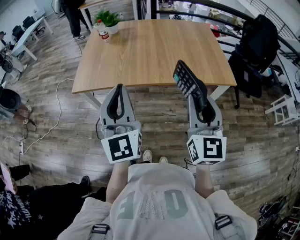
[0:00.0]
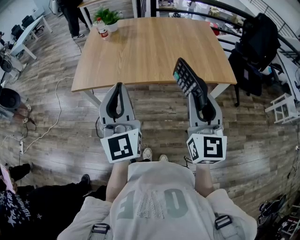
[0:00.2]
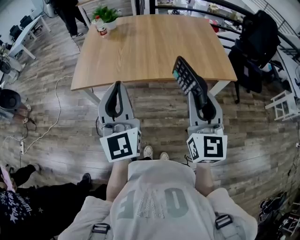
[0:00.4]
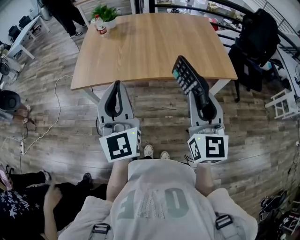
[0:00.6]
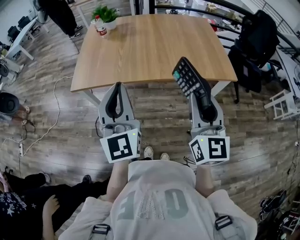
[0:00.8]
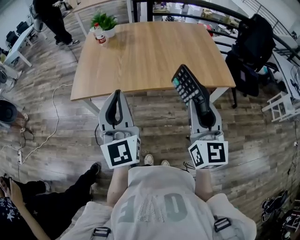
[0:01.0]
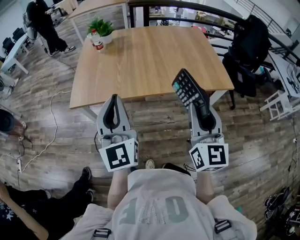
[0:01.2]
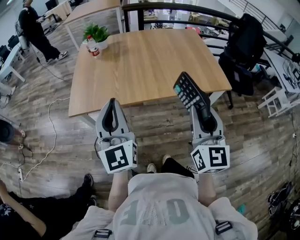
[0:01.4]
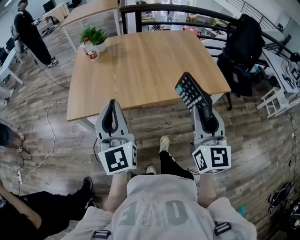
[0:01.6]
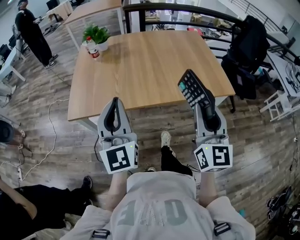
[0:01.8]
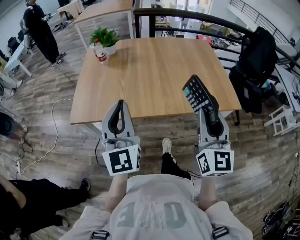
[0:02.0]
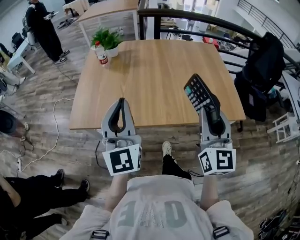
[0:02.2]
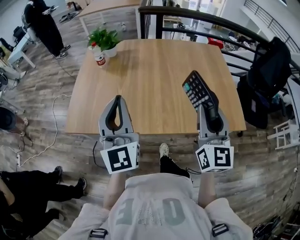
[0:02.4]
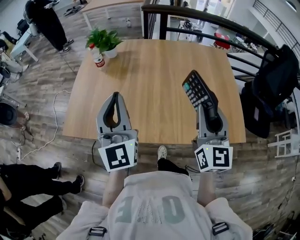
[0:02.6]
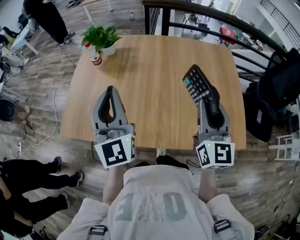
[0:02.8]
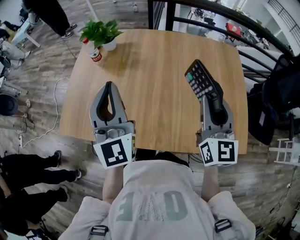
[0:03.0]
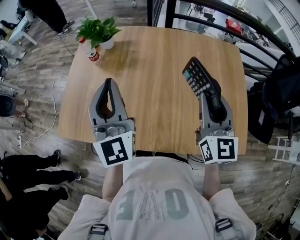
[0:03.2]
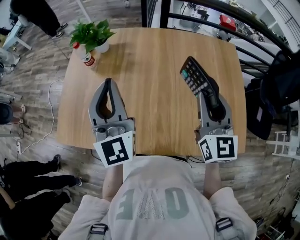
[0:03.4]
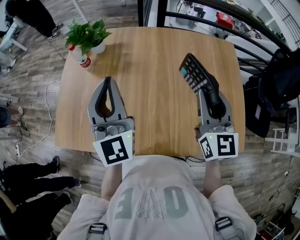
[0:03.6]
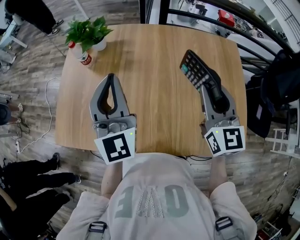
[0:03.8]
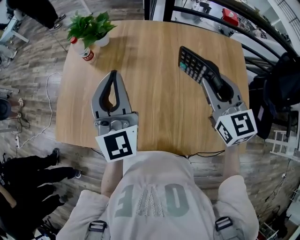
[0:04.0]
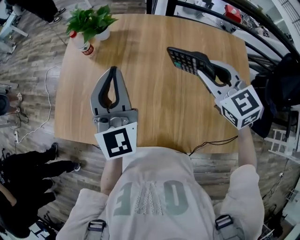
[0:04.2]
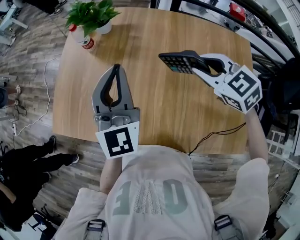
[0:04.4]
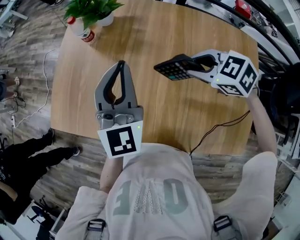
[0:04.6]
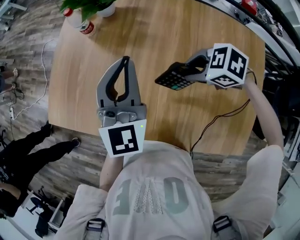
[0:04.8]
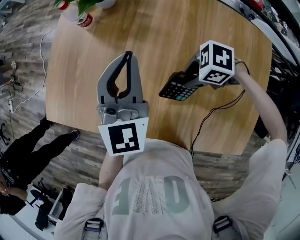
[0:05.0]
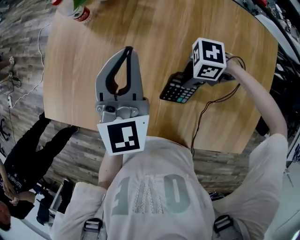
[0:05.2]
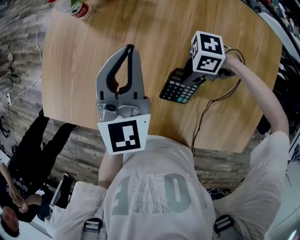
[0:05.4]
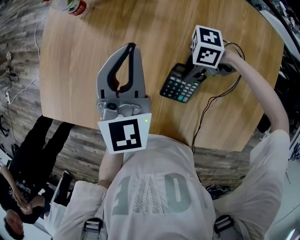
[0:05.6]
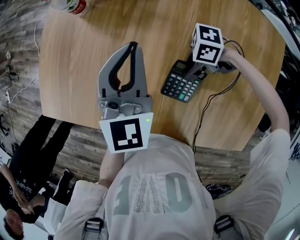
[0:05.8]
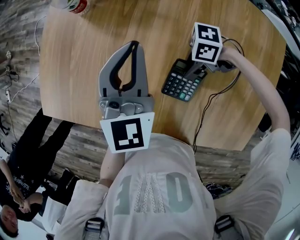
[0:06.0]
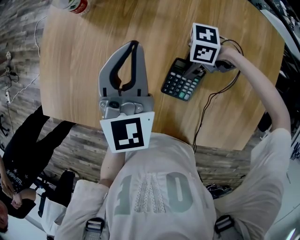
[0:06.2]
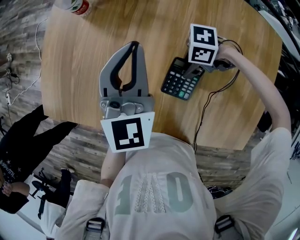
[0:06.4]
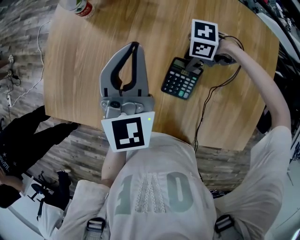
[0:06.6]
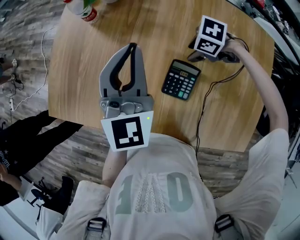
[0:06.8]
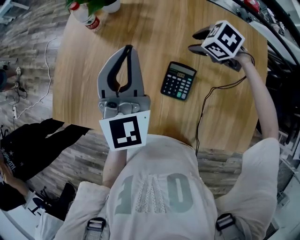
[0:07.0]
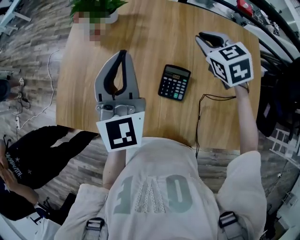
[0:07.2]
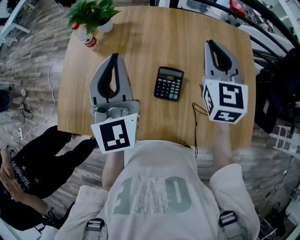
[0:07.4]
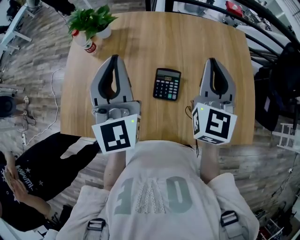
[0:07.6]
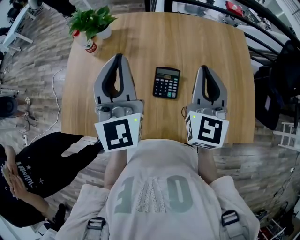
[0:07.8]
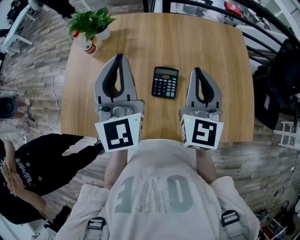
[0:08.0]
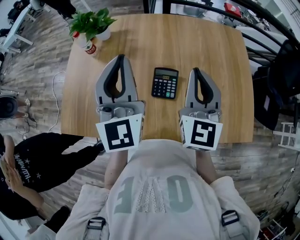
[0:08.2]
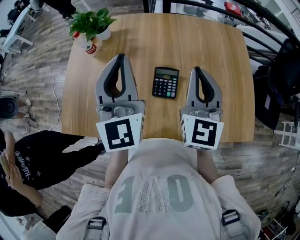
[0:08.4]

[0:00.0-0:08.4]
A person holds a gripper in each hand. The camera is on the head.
0:00.0 to 0:01.4: The left gripper heads forward and to the left, covering roughly 10 cm.
0:01.4 to 0:02.8: Both grippers travel together forward, about 35 cm.
0:02.8 to 0:04.2: Both grippers move forward, roughly 15 cm. The right gripper angles its fingers downward, by about 30 degrees.
0:04.2 to 0:05.6: The right gripper shifts approximately 25 cm downward, and turns by some 100 degrees. Meanwhile the left gripper is displaced downward by approximately 15 cm.
0:05.6 to 0:07.0: The right gripper changes place by roughly 15 cm, tips its fingers downward by some 30 degrees, and opens its fingers. The left gripper is displaced upward by roughly 10 cm.
0:07.0 to 0:08.4: The right gripper goes about 20 cm upward, tilts its fingers about 70 degrees upward, and closes; the left gripper changes place by approximately 10 cm.

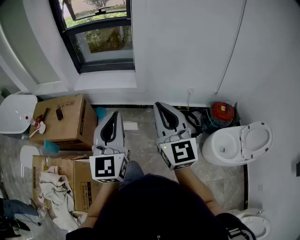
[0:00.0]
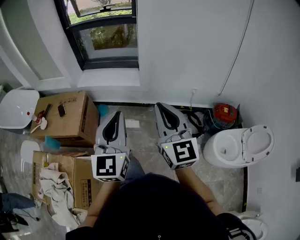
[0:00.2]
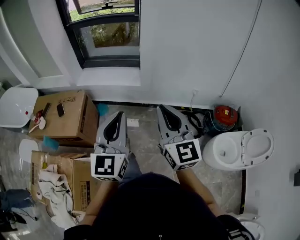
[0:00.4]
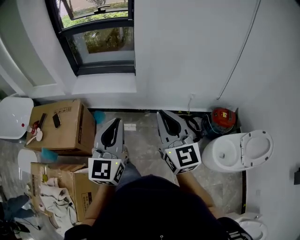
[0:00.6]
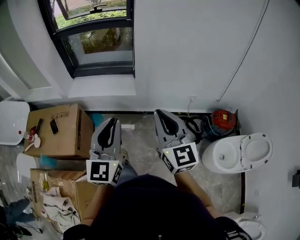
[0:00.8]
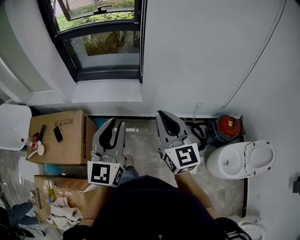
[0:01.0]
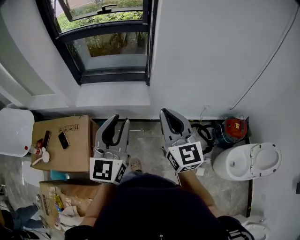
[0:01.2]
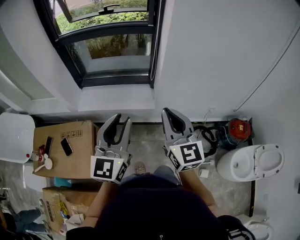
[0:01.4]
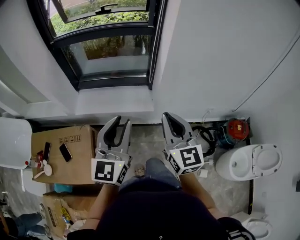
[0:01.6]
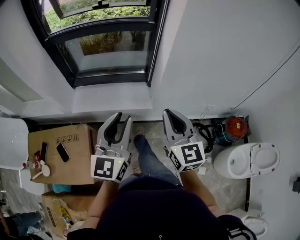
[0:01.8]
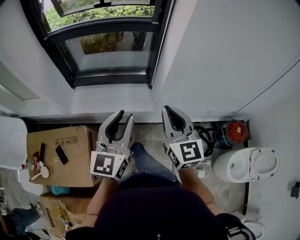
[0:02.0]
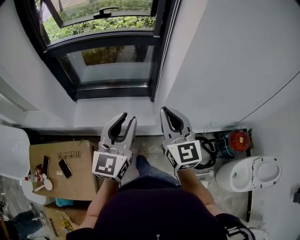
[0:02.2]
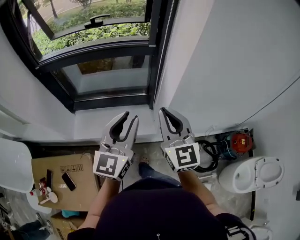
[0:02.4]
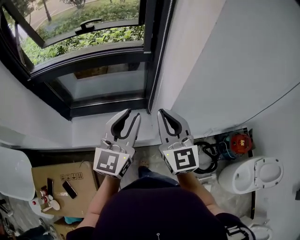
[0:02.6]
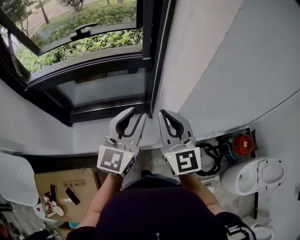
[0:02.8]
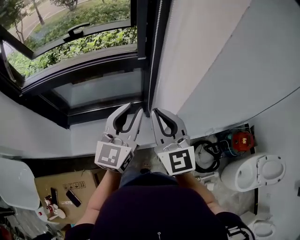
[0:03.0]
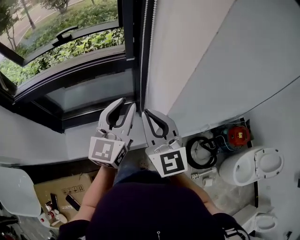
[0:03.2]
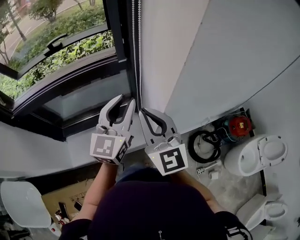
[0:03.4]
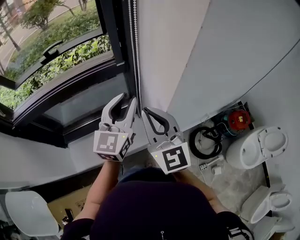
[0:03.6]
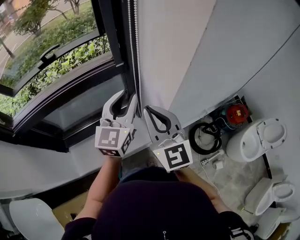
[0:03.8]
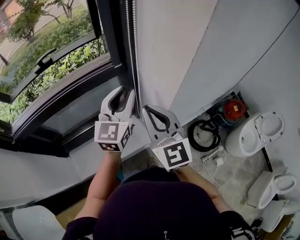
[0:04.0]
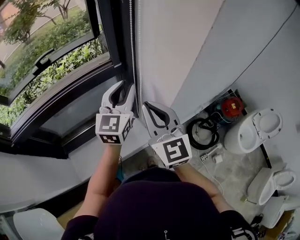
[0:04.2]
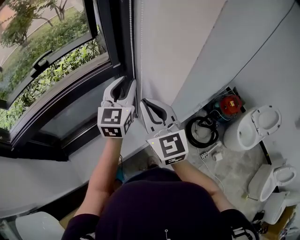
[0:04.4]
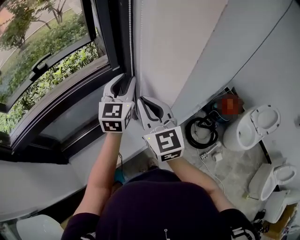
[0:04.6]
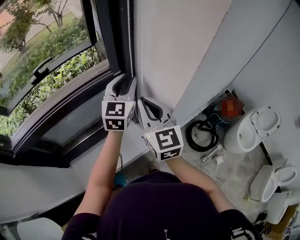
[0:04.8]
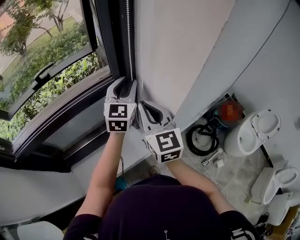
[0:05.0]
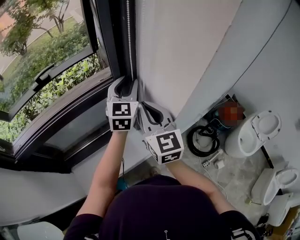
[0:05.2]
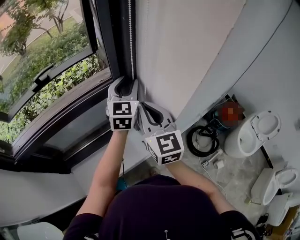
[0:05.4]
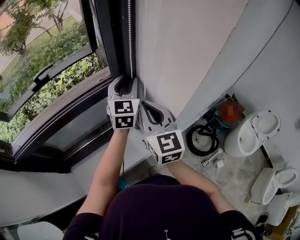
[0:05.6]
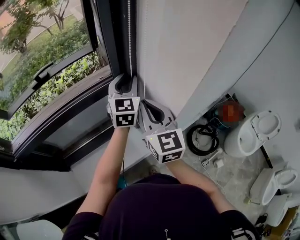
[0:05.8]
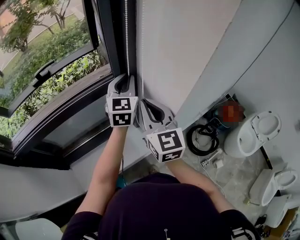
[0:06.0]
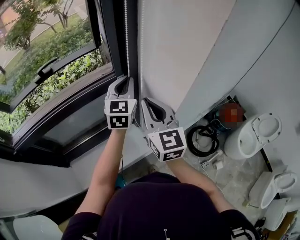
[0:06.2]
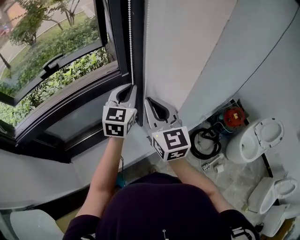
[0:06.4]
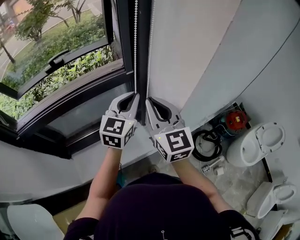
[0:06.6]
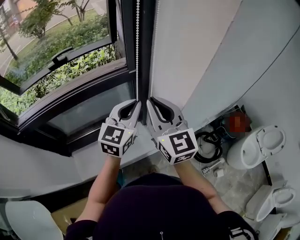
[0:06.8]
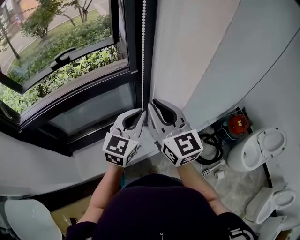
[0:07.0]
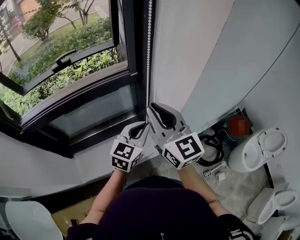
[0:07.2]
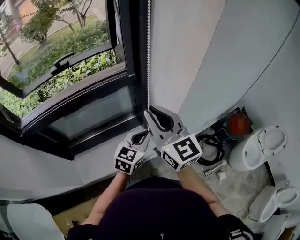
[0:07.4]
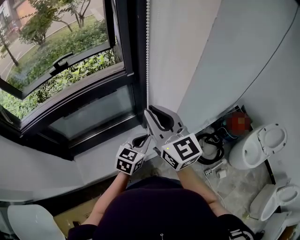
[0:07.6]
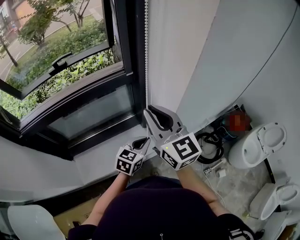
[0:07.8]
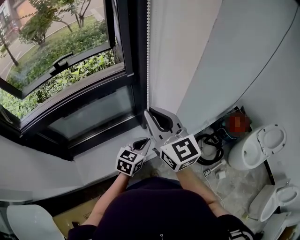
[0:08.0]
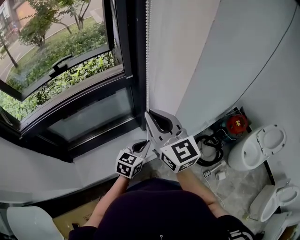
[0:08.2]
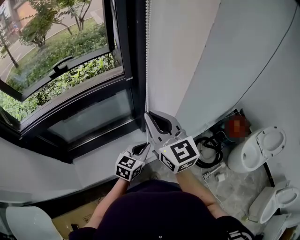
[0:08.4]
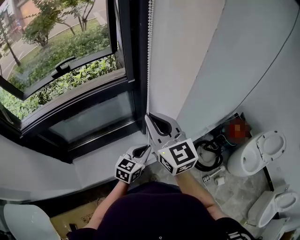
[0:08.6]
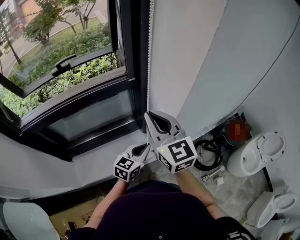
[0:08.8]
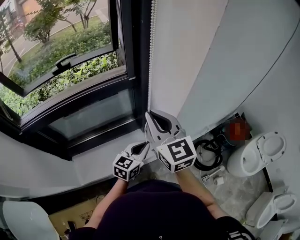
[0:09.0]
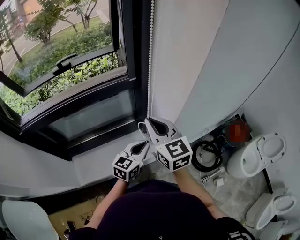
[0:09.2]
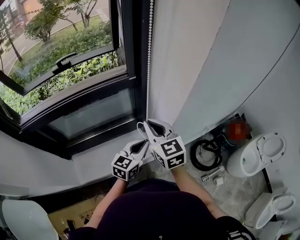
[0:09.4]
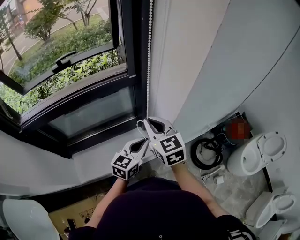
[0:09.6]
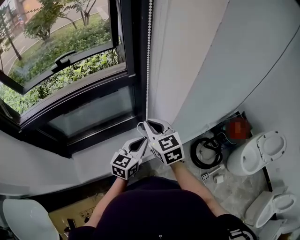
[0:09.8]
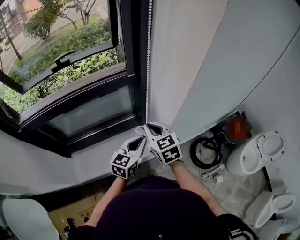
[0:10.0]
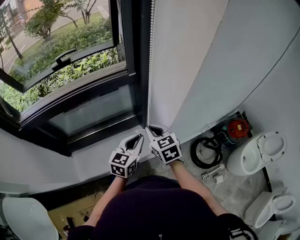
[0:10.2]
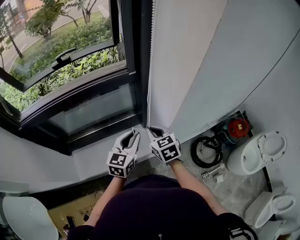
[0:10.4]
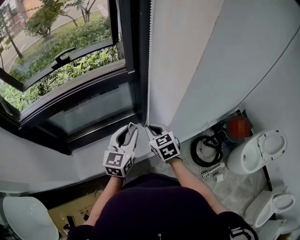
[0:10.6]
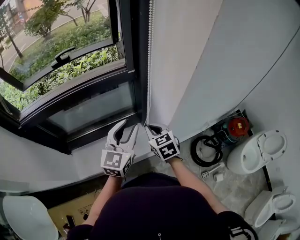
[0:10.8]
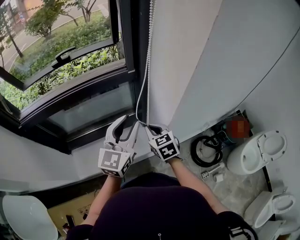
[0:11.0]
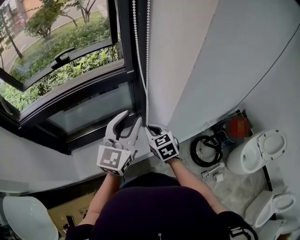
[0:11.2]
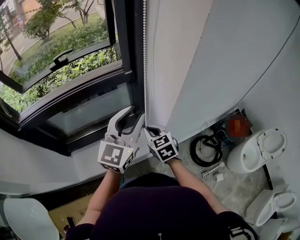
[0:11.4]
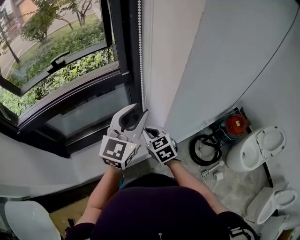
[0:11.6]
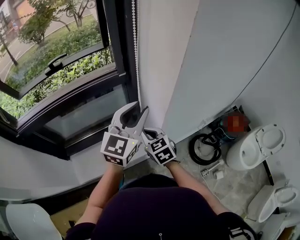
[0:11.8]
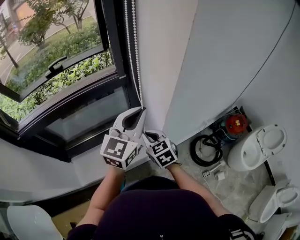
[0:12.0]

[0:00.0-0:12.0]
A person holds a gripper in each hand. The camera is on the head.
0:00.0 to 0:01.6: Both grippers are carried forward and to the left, about 40 cm. The left gripper opens.
0:01.6 to 0:03.0: The grippers both shift forward by some 35 cm.
0:03.0 to 0:04.4: The right gripper swivels roughly 20 degrees. Meanwhile the left gripper is displaced forward by approximately 10 cm.
0:04.4 to 0:06.0: The left gripper shifts approximately 10 cm forward.
0:06.0 to 0:07.6: The right gripper travels backward by approximately 10 cm; the left gripper goes roughly 25 cm backward and downward, and swivels some 30 degrees.
0:07.6 to 0:09.0: The grippers stay close to where they were, moving slightly.
0:09.0 to 0:10.4: The left gripper ends up about 5 cm from where it was; the right gripper goes roughly 20 cm downward, and changes its angle by about 30 degrees.
0:10.4 to 0:12.0: The left gripper goes some 20 cm upward and to the right, and changes its angle by about 20 degrees.

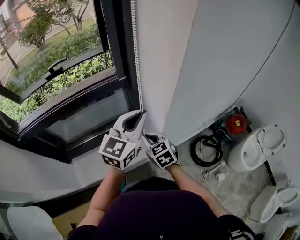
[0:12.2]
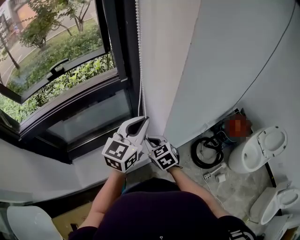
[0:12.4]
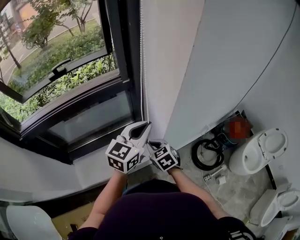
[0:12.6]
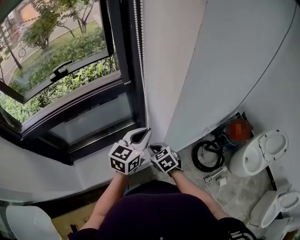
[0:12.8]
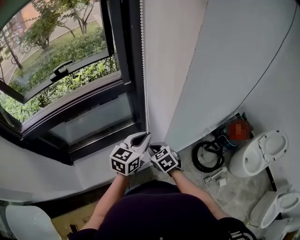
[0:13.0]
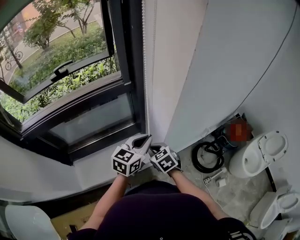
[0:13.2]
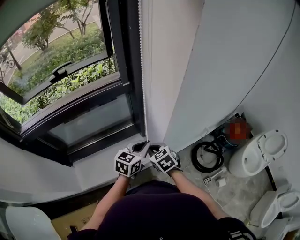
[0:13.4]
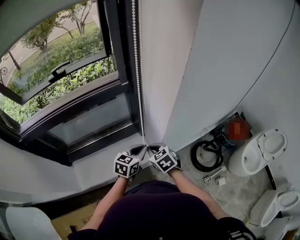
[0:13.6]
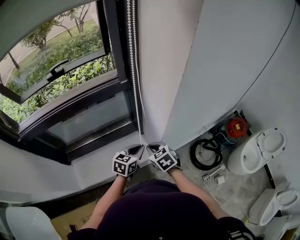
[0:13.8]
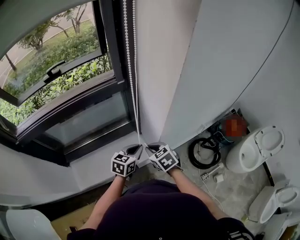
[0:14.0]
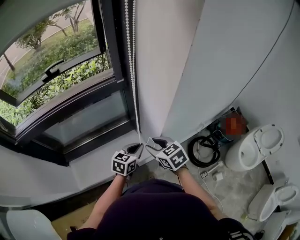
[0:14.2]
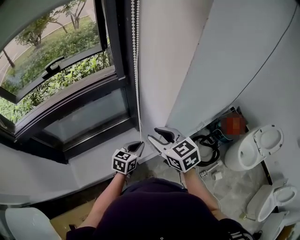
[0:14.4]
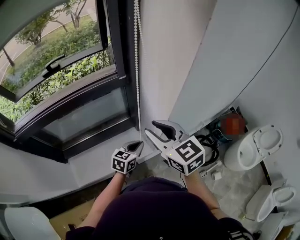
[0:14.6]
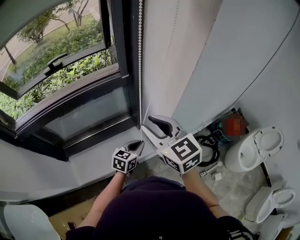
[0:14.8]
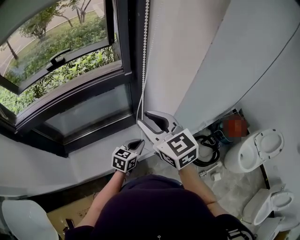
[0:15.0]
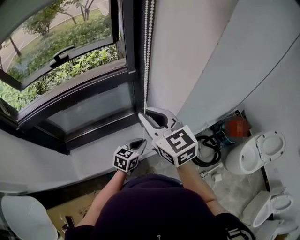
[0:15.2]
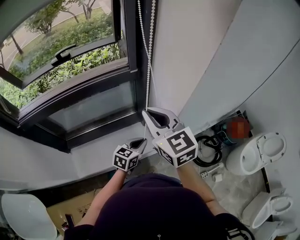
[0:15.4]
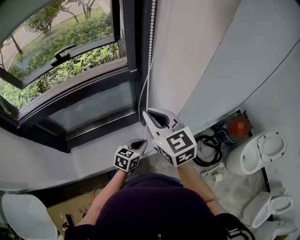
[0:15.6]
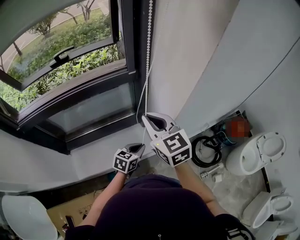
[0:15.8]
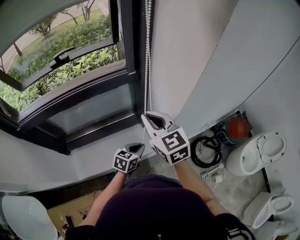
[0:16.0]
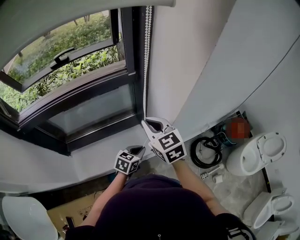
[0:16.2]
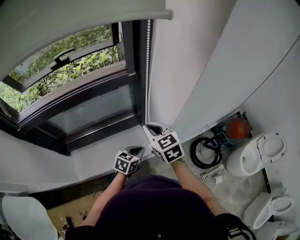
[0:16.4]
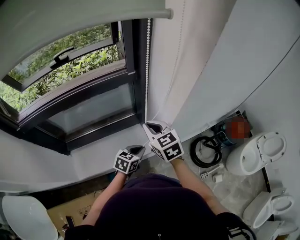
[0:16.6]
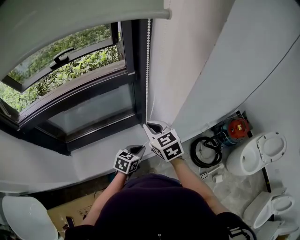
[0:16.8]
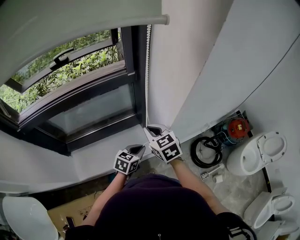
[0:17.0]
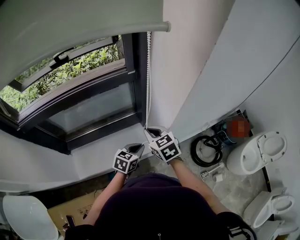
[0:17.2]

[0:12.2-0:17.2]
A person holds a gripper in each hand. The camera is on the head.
0:12.2 to 0:13.8: The right gripper is displaced downward by approximately 5 cm; the left gripper travels downward by about 25 cm, and swivels approximately 30 degrees.
0:13.8 to 0:15.6: The right gripper heads upward, covering roughly 25 cm, tips its fingers upward by some 30 degrees, and opens and closes again.
0:15.6 to 0:17.2: The right gripper moves downward, roughly 15 cm, and rotates approximately 20 degrees.
